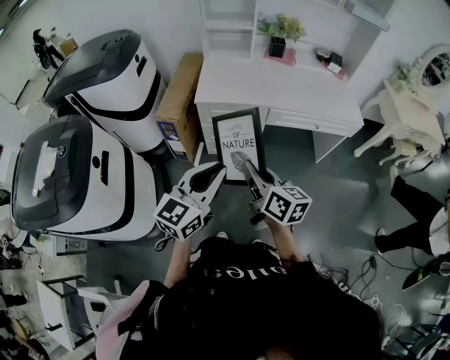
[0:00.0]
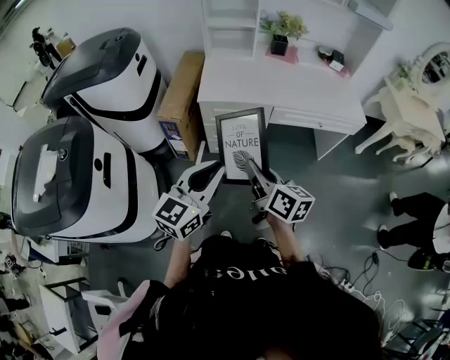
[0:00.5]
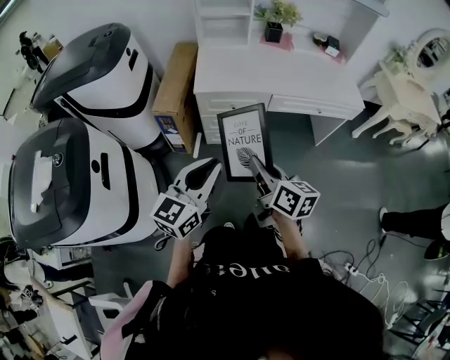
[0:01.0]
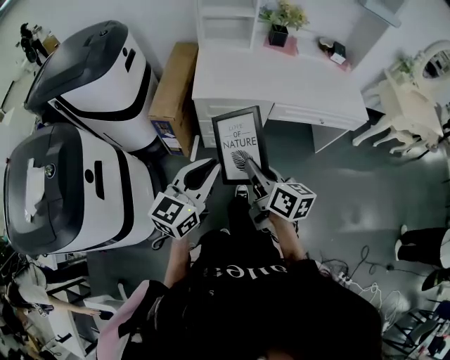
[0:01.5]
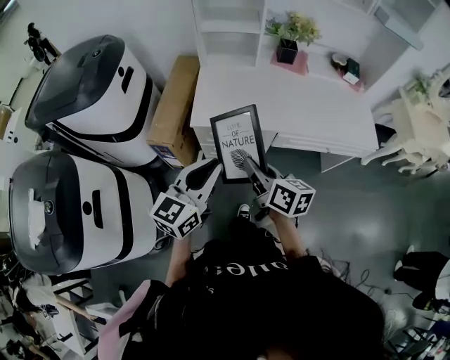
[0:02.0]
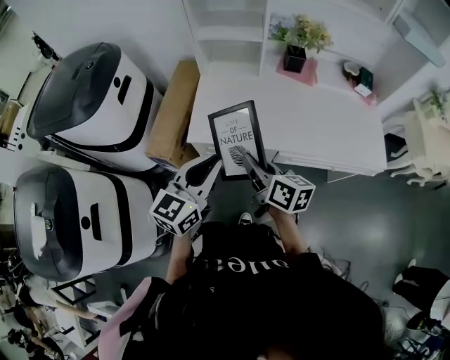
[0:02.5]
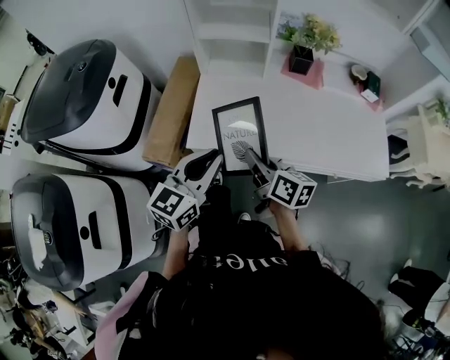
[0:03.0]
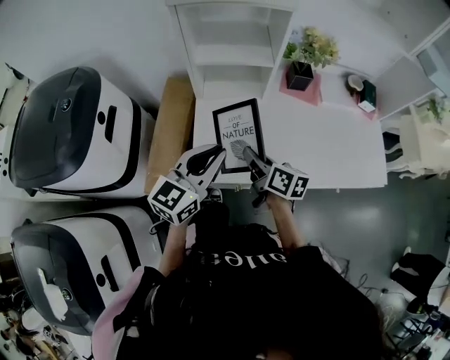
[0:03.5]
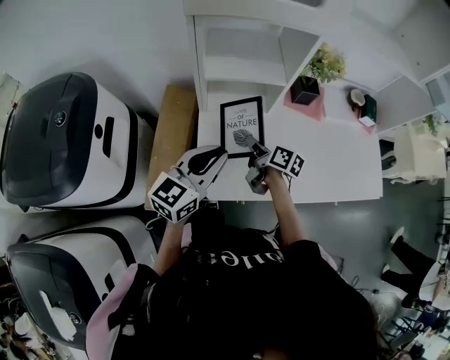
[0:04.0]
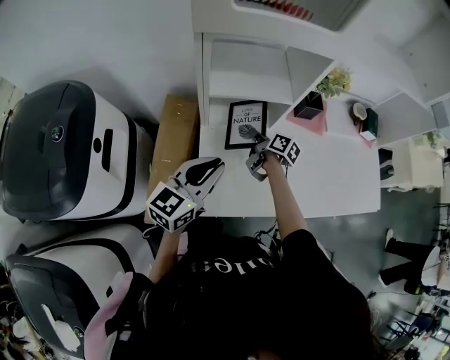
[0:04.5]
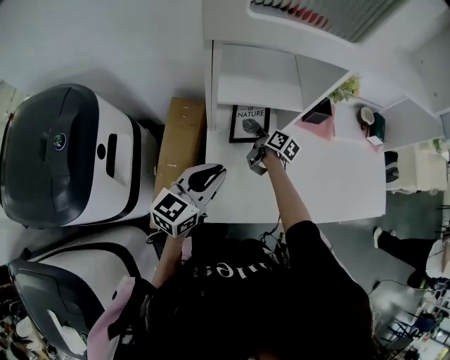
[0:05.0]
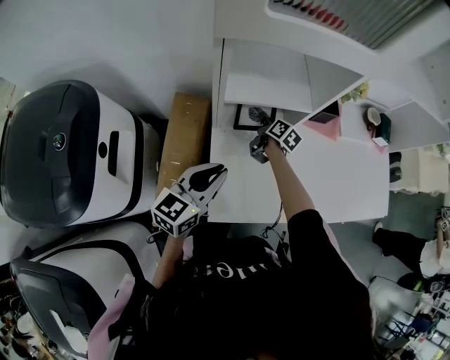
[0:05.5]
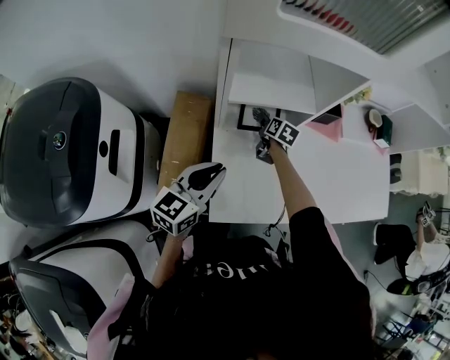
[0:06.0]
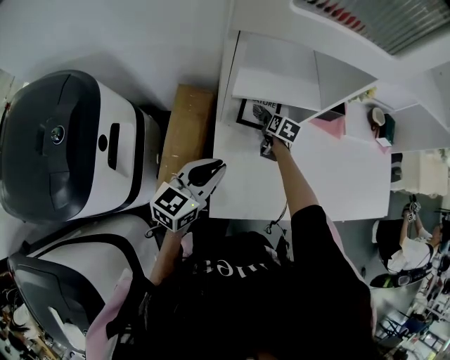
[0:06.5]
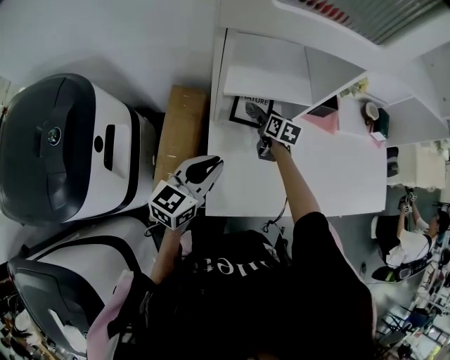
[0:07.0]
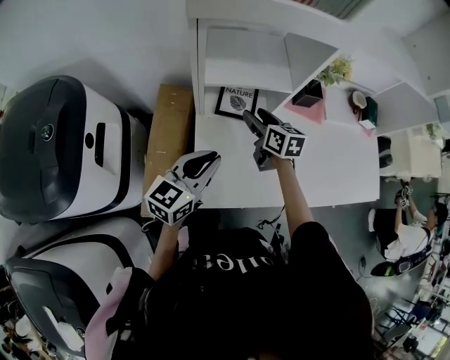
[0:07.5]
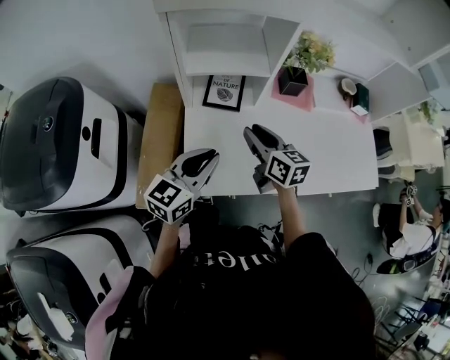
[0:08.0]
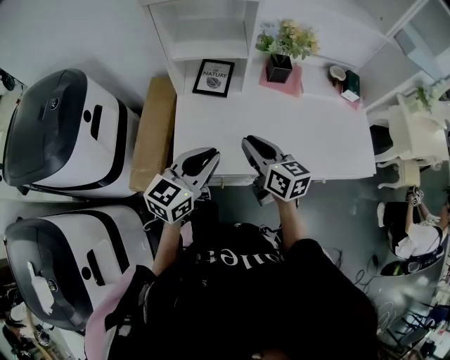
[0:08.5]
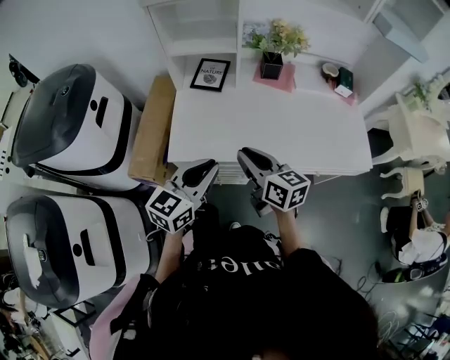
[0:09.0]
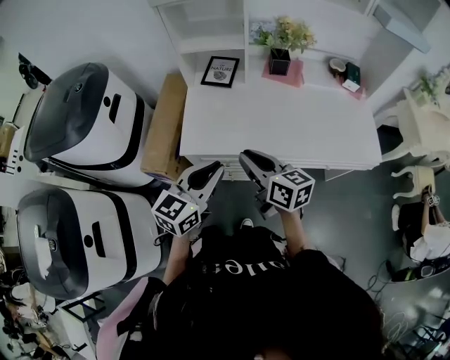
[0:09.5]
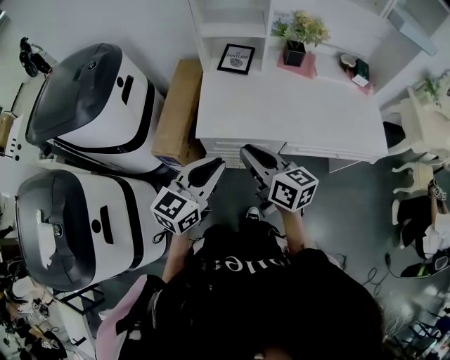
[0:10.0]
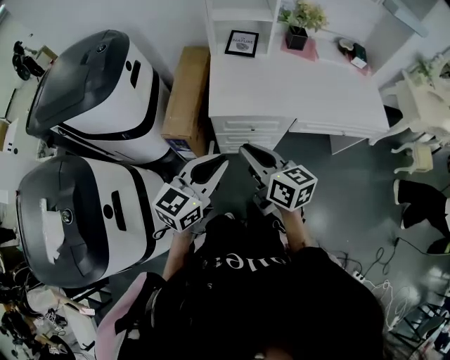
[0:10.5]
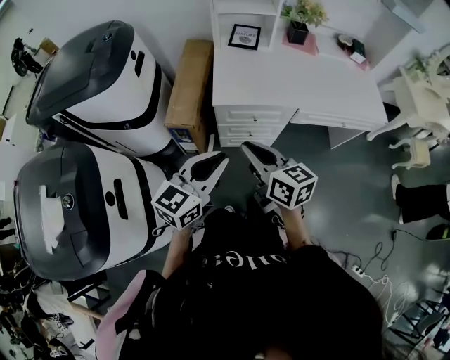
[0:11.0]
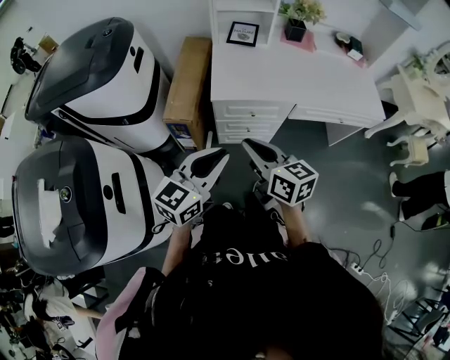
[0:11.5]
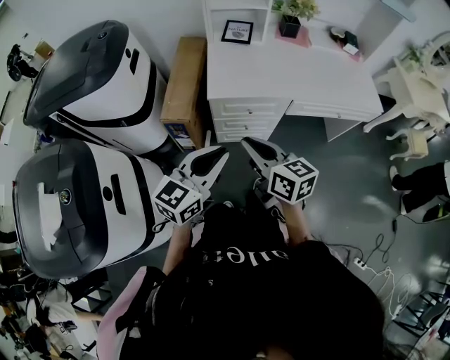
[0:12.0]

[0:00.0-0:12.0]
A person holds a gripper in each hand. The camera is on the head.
0:00.0 to 0:02.0: Both grippers move forward, some 25 cm.
0:02.0 to 0:04.0: The two grippers travel together, forward, roughly 40 cm. The right gripper turns by roughly 20 degrees.
0:04.0 to 0:06.0: The left gripper heads to the left, downward and forward, covering approximately 10 cm, while the right gripper goes some 25 cm forward and downward, rotates some 30 degrees, and opens its fingers.
0:06.0 to 0:08.0: The left gripper is displaced to the right and backward by some 10 cm. Meanwhile the right gripper is displaced backward and upward by some 30 cm, turns by some 40 degrees, and closes.
0:08.0 to 0:10.0: The grippers both shift backward by approximately 30 cm.
0:10.0 to 0:12.0: Both grippers travel together backward and to the left, about 20 cm.

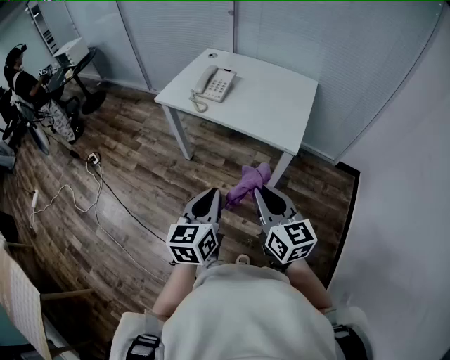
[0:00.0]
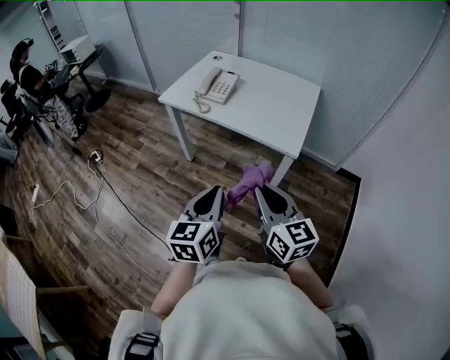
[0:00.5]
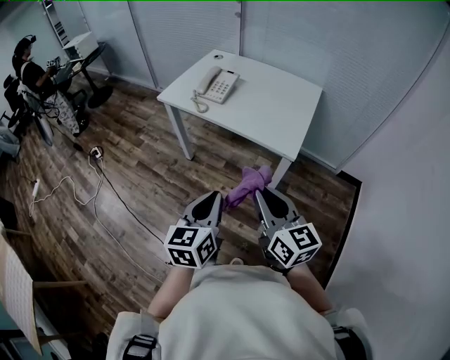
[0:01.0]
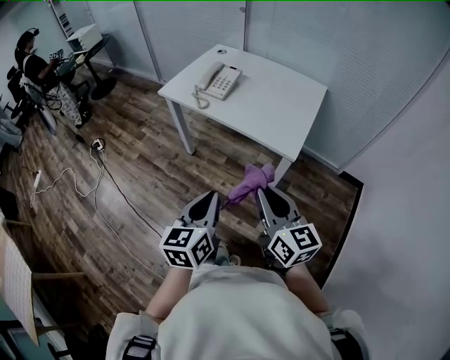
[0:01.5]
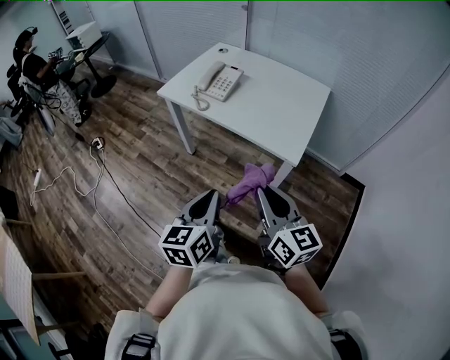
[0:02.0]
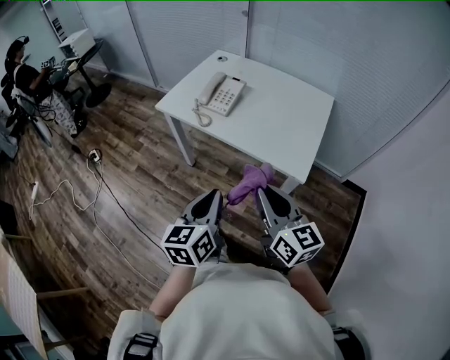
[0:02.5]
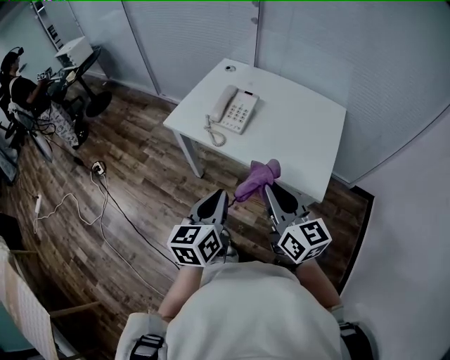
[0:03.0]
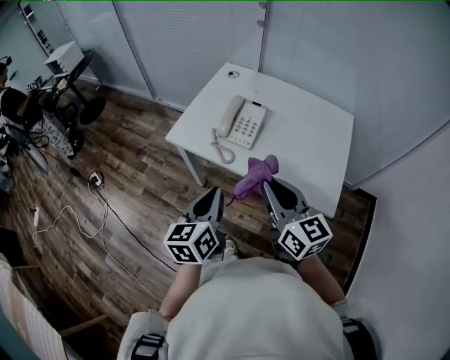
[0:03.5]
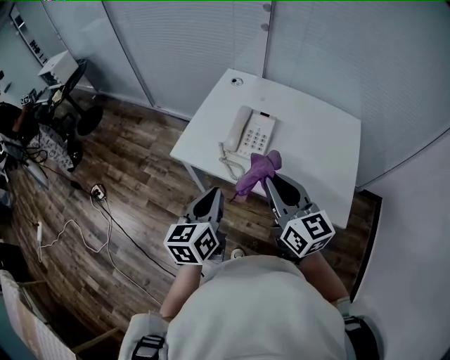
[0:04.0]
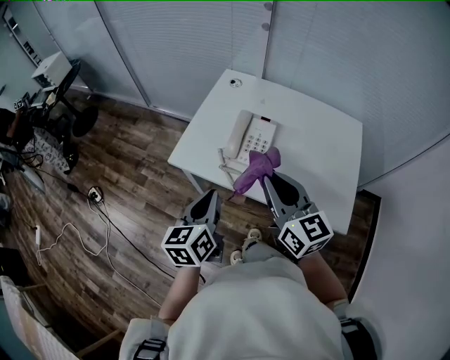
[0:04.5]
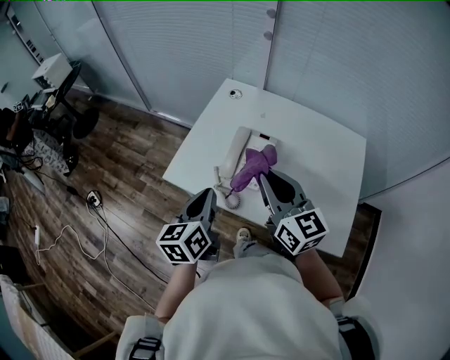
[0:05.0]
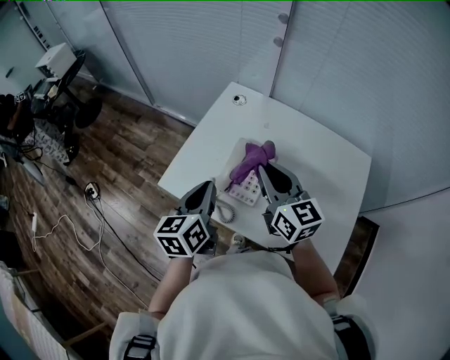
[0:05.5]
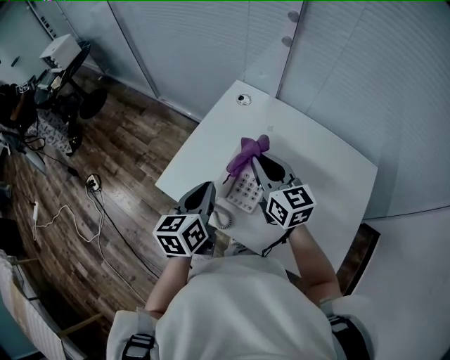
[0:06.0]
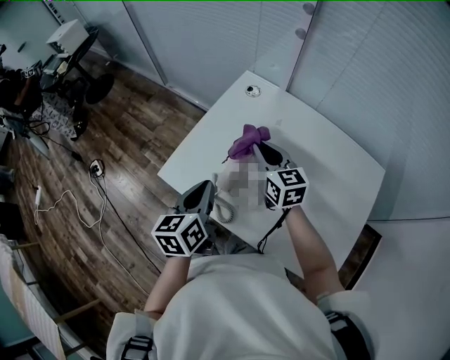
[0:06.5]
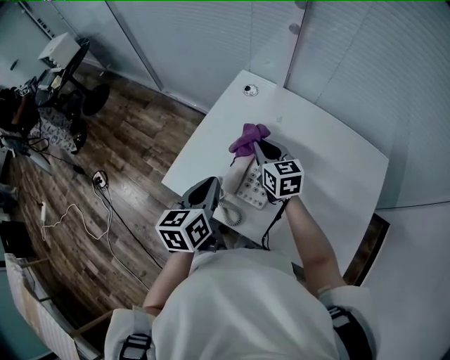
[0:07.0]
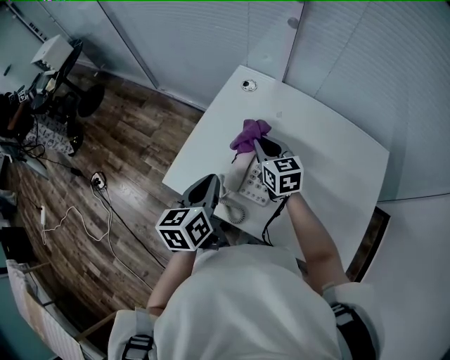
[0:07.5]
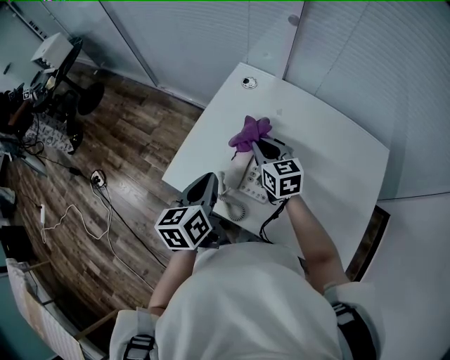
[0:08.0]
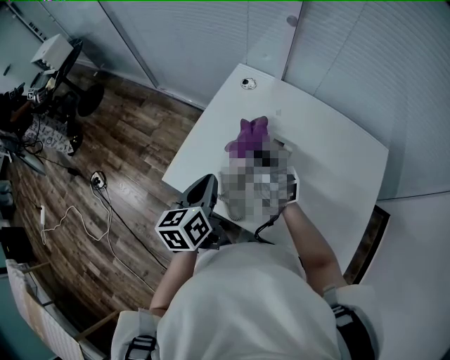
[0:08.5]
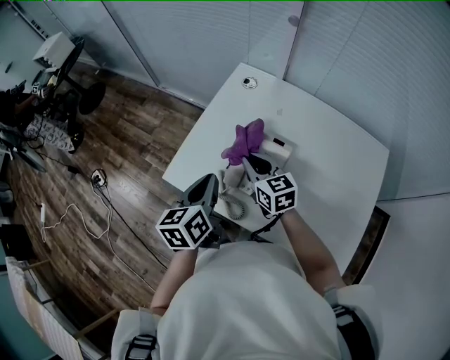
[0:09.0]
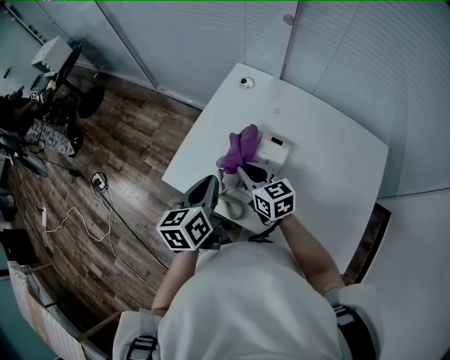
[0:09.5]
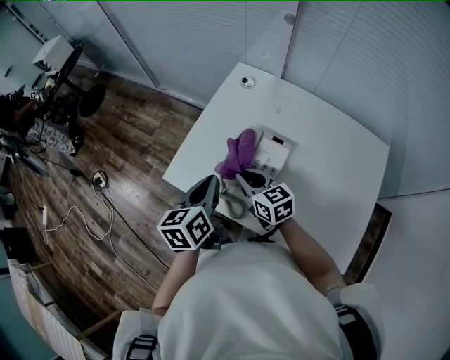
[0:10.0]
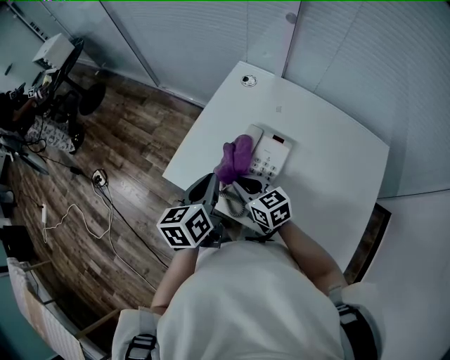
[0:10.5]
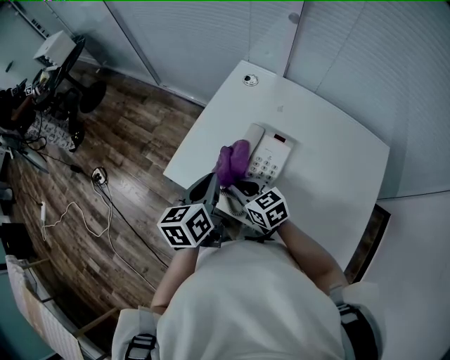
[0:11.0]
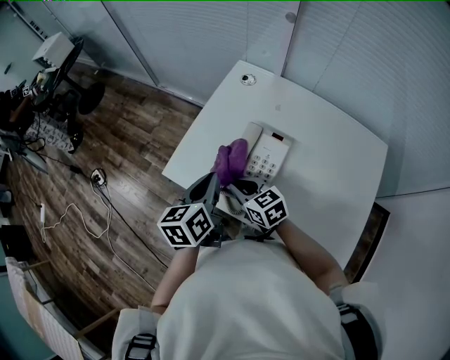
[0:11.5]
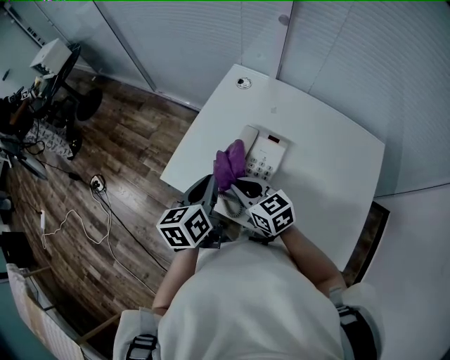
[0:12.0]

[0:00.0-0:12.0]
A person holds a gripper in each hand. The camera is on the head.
0:00.0 to 0:02.0: The right gripper ends up some 5 cm from where it was.
0:02.0 to 0:04.0: The grippers both shift forward and to the left by some 40 cm.
0:04.0 to 0:06.0: Both grippers travel together forward, some 25 cm.
0:06.0 to 0:08.0: The right gripper heads downward, covering some 10 cm.
0:08.0 to 0:10.0: The right gripper travels backward and to the left by roughly 10 cm.
0:10.0 to 0:12.0: The grippers make only small movements.

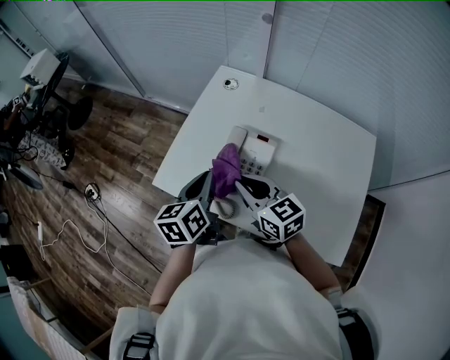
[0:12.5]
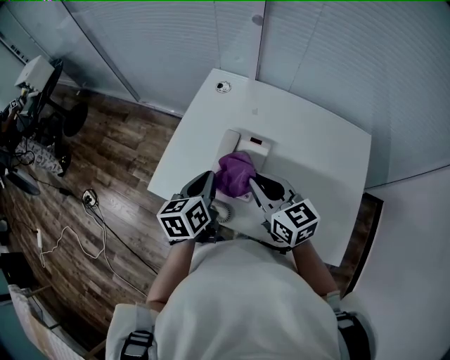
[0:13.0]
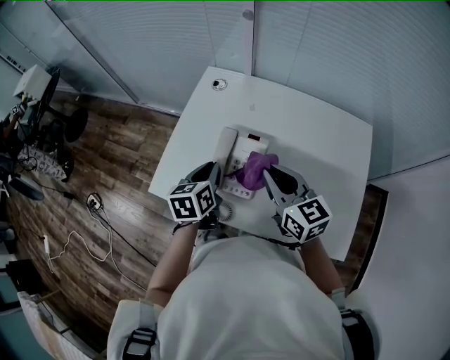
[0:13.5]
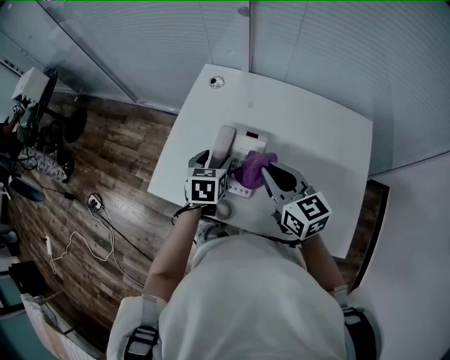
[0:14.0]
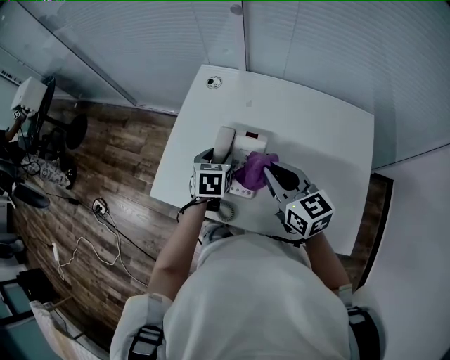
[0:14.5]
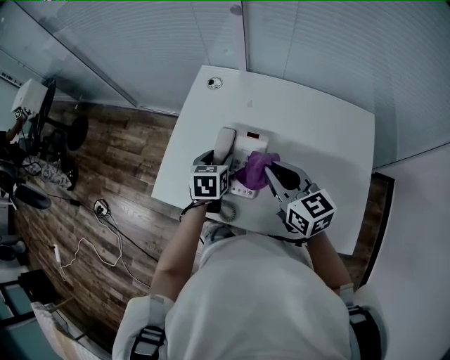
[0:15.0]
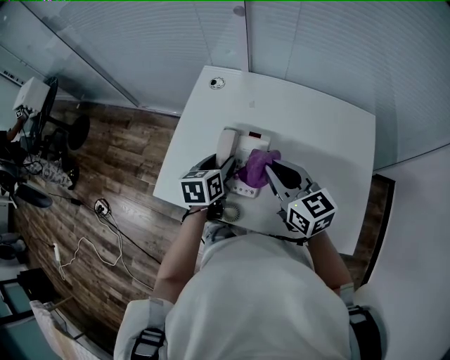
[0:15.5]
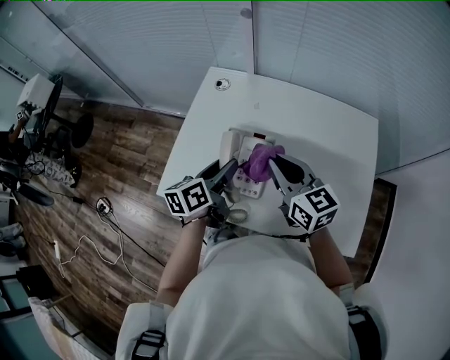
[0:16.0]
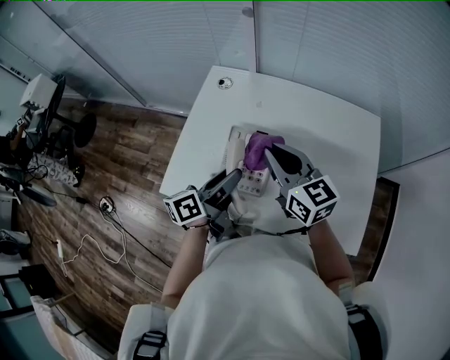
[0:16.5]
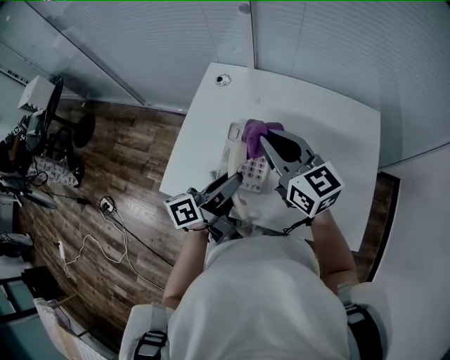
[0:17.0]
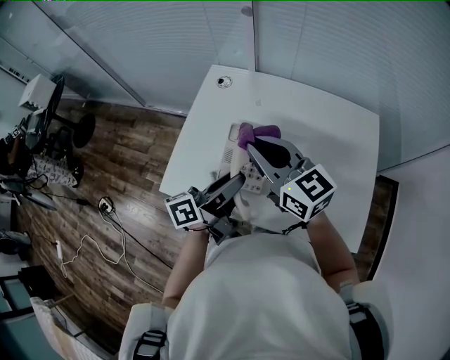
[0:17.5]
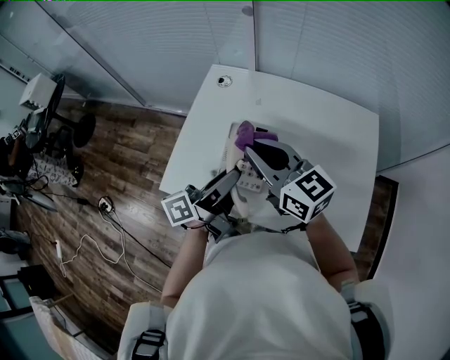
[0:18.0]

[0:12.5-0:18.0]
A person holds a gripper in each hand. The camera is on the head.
0:12.5 to 0:14.5: The left gripper travels downward, forward and to the right by some 15 cm, changes its angle by some 40 degrees, and opens its fingers. Meanwhile the right gripper shifts about 10 cm to the right.
0:14.5 to 0:16.0: The left gripper goes some 10 cm upward, and turns by roughly 50 degrees.
0:16.0 to 0:18.0: The right gripper moves upward and to the left, some 10 cm. The left gripper travels upward and backward by about 10 cm, and rotates approximately 30 degrees.
